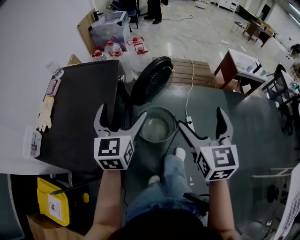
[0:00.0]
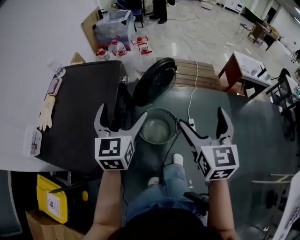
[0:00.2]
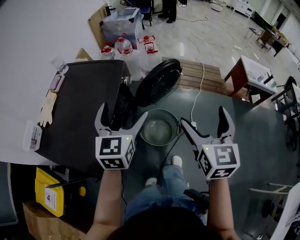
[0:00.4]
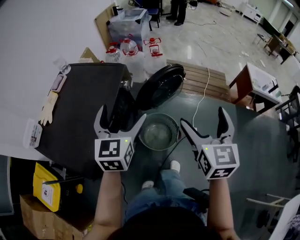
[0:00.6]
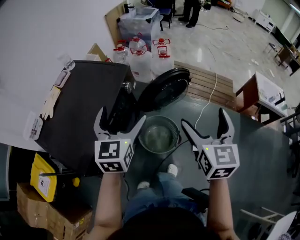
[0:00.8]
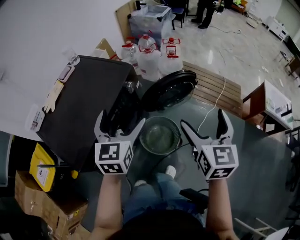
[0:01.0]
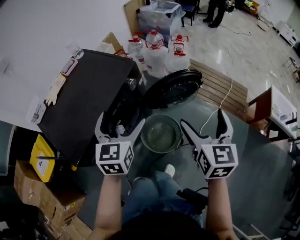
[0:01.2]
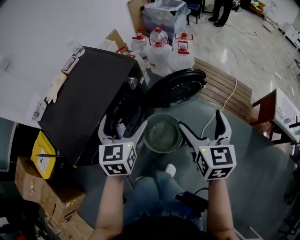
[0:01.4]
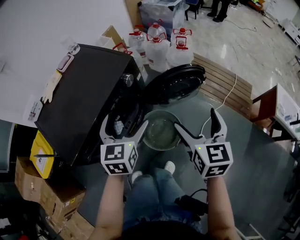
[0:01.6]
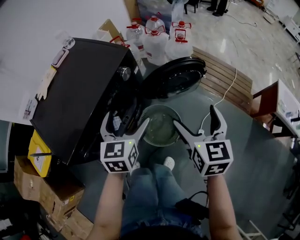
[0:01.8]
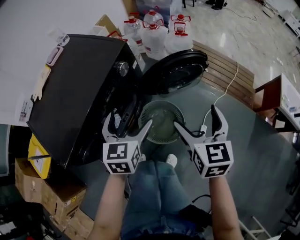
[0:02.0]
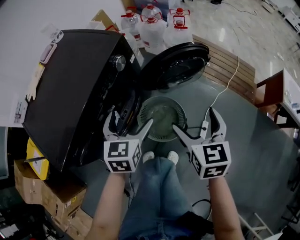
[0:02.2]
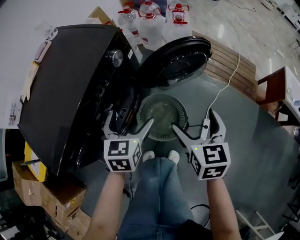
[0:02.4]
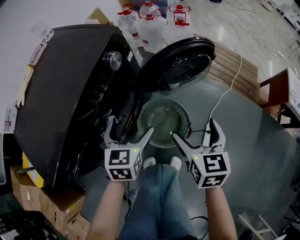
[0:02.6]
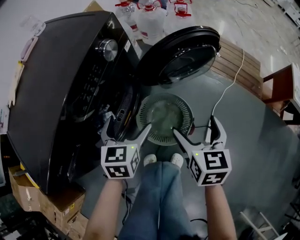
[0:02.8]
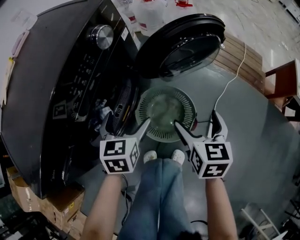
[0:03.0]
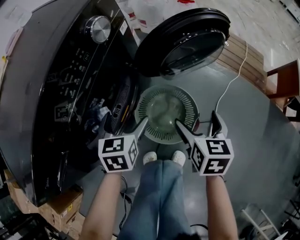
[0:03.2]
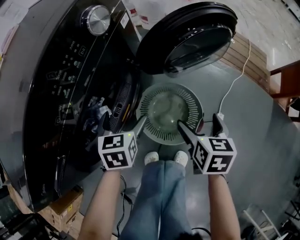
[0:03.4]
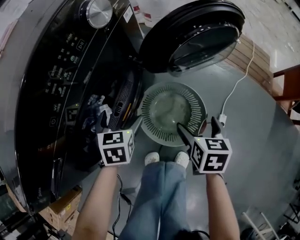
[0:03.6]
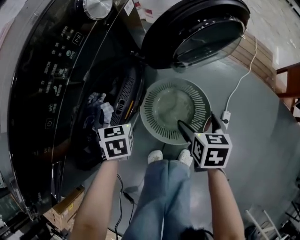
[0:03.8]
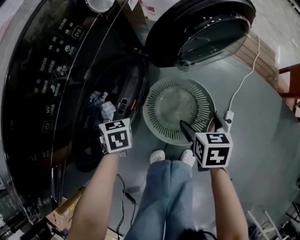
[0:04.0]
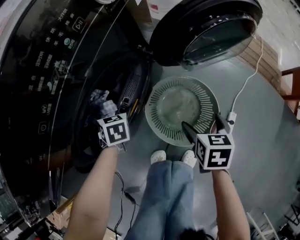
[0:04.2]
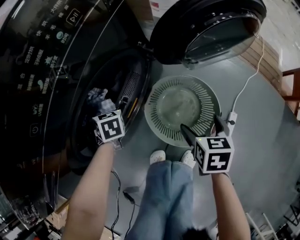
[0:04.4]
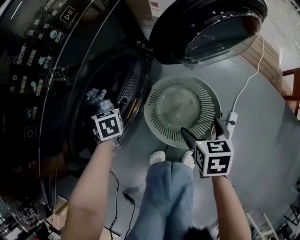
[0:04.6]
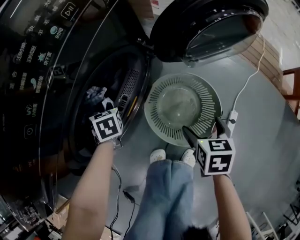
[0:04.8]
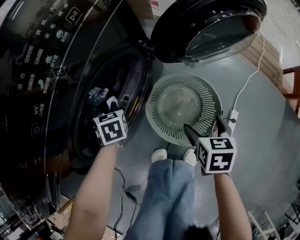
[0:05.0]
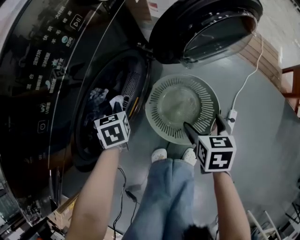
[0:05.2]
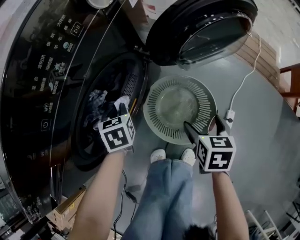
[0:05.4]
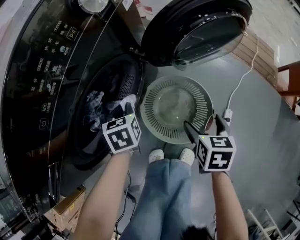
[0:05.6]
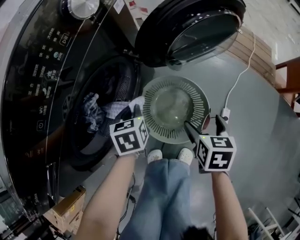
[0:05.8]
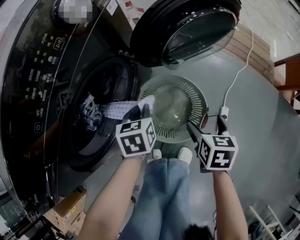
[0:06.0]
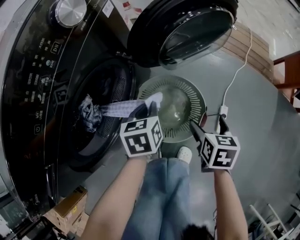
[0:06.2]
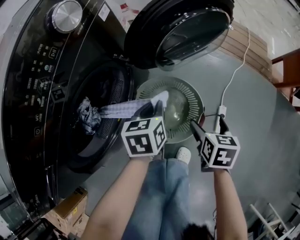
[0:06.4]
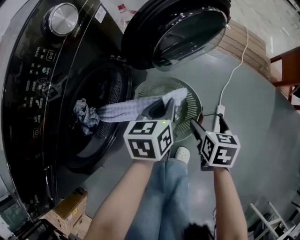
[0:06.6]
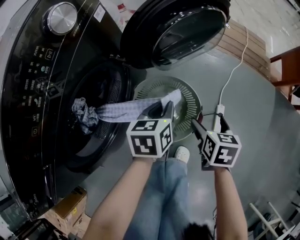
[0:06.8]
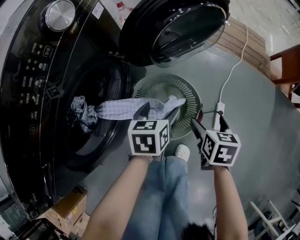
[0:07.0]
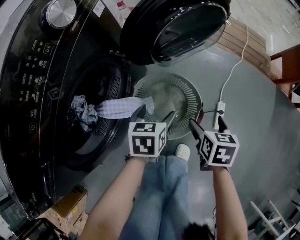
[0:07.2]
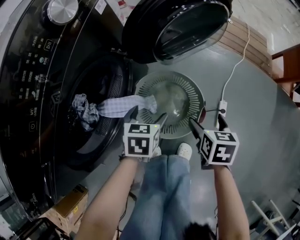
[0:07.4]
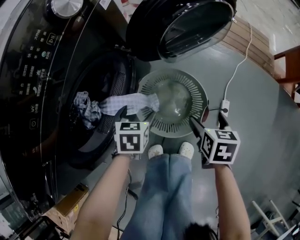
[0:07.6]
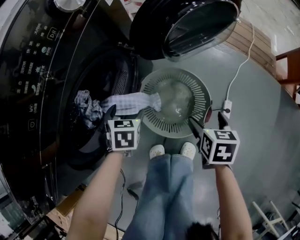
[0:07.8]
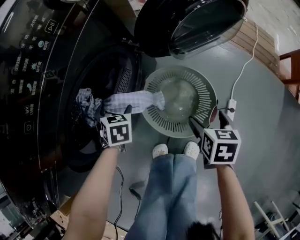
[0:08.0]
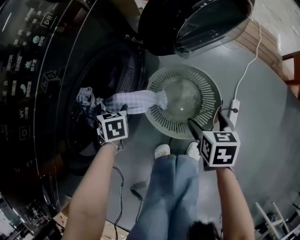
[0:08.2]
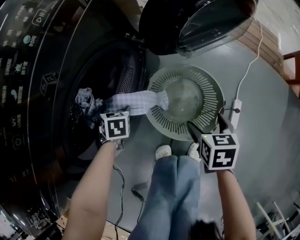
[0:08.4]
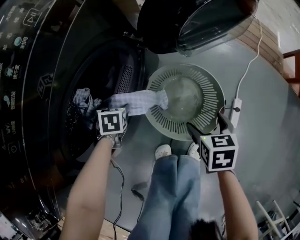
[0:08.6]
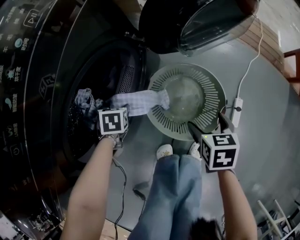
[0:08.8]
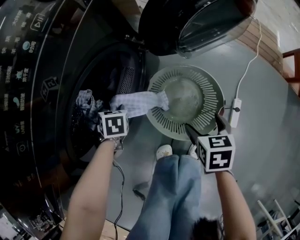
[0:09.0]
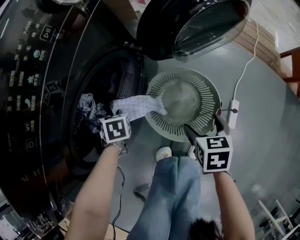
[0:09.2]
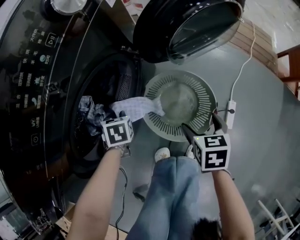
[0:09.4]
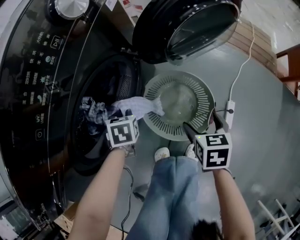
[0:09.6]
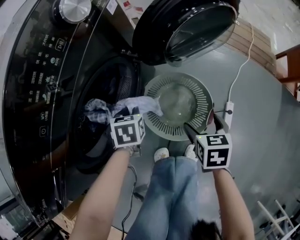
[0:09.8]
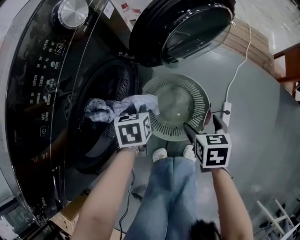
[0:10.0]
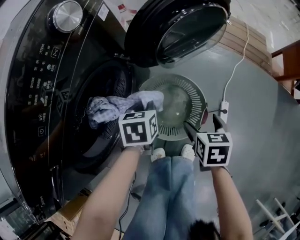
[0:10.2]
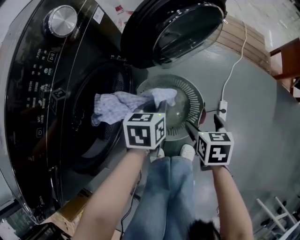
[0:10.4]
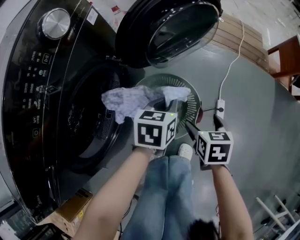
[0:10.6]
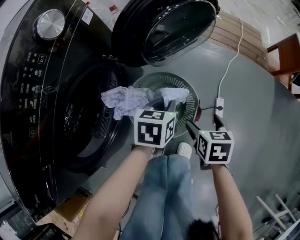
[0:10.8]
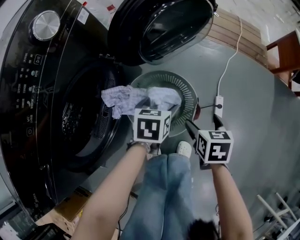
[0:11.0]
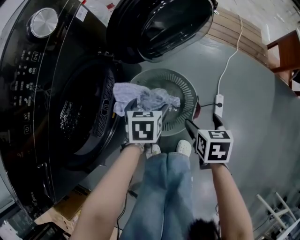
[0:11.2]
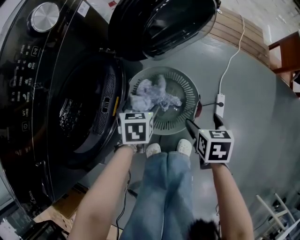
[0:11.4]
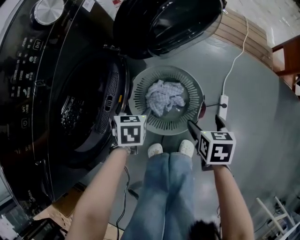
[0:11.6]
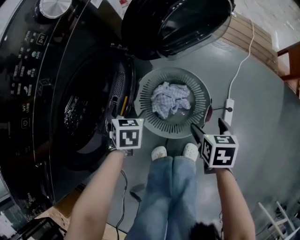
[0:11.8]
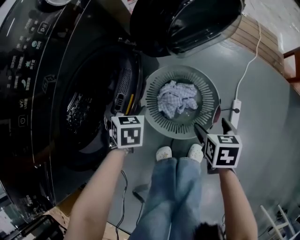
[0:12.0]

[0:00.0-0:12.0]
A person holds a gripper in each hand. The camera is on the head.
0:00.0 to 0:01.6: The left gripper changes place by some 15 cm, and turns by about 30 degrees, while the right gripper changes place by approximately 25 cm, and rotates roughly 30 degrees.
0:01.6 to 0:03.0: Both grippers travel together downward, approximately 30 cm.
0:03.0 to 0:04.4: Both grippers travel together downward, about 20 cm. The left gripper rotates approximately 30 degrees.
0:04.4 to 0:06.0: The right gripper moves roughly 10 cm; the left gripper ends up some 20 cm from where it was, swivels some 30 degrees, and closes up.
0:06.0 to 0:07.6: The left gripper goes to the right and returns, roughly 10 cm each way, and opens its fingers.
0:07.6 to 0:09.0: The left gripper changes place by some 20 cm, rotates about 20 degrees, and closes, while the right gripper moves about 10 cm.
0:09.0 to 0:10.4: The right gripper changes place by about 10 cm, while the left gripper shifts by roughly 30 cm, and changes its angle by approximately 40 degrees.
0:10.4 to 0:12.0: The left gripper changes place by approximately 20 cm, swivels about 30 degrees, and opens its fingers; the right gripper travels downward by some 5 cm.

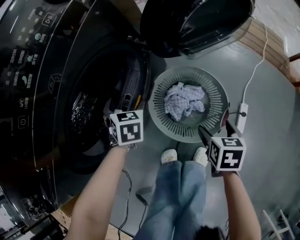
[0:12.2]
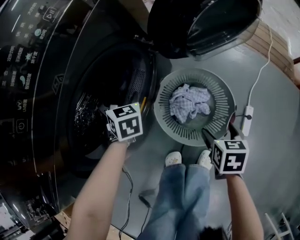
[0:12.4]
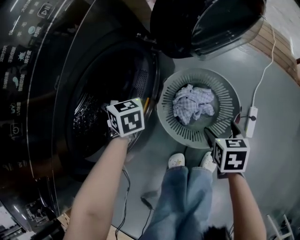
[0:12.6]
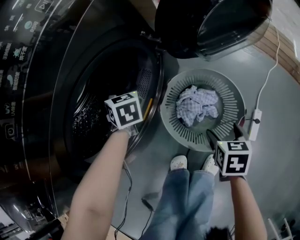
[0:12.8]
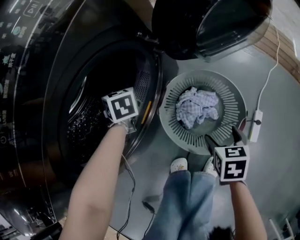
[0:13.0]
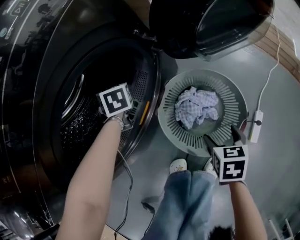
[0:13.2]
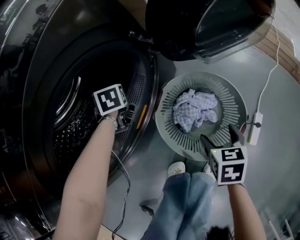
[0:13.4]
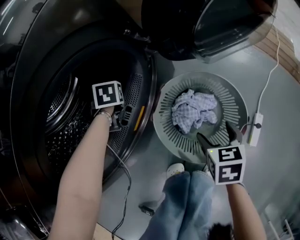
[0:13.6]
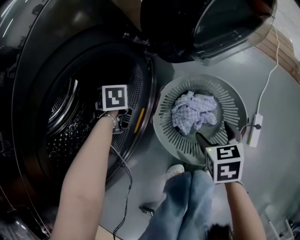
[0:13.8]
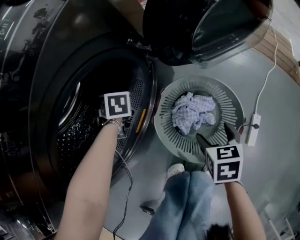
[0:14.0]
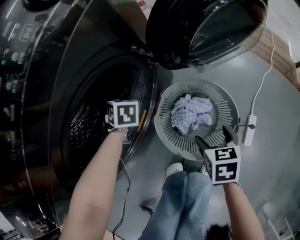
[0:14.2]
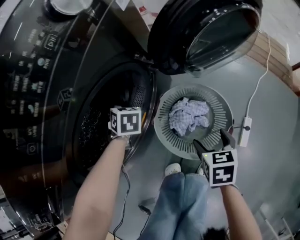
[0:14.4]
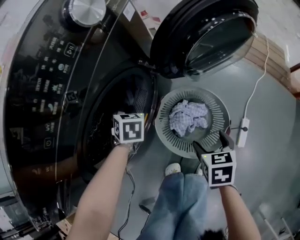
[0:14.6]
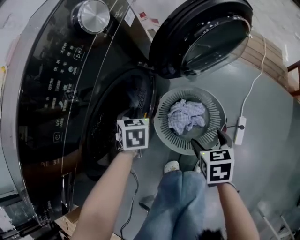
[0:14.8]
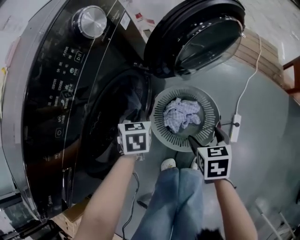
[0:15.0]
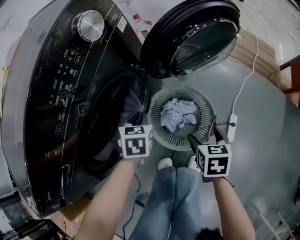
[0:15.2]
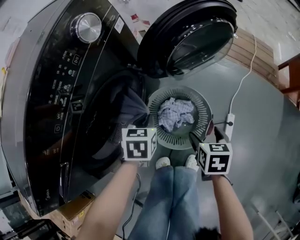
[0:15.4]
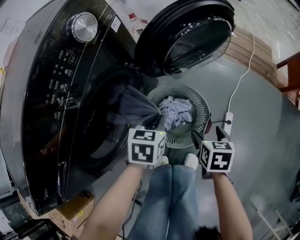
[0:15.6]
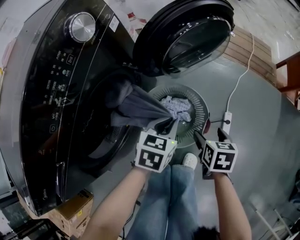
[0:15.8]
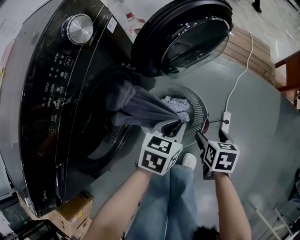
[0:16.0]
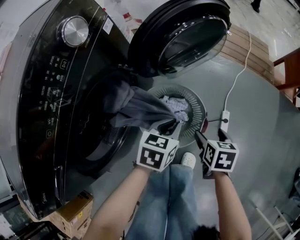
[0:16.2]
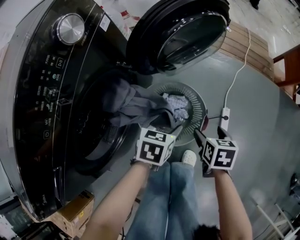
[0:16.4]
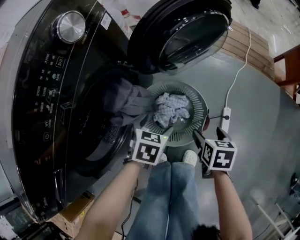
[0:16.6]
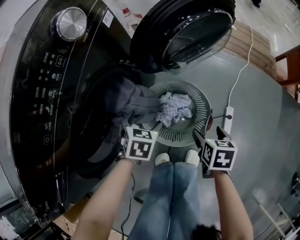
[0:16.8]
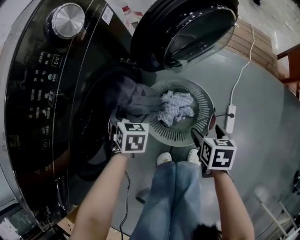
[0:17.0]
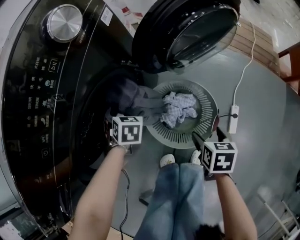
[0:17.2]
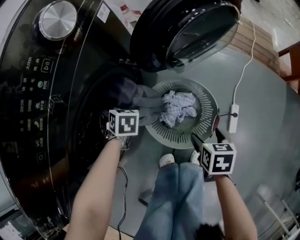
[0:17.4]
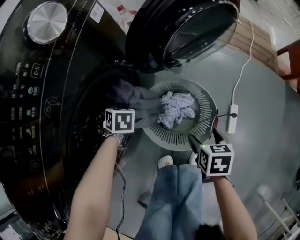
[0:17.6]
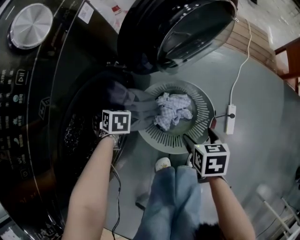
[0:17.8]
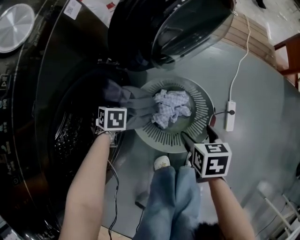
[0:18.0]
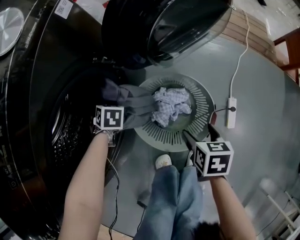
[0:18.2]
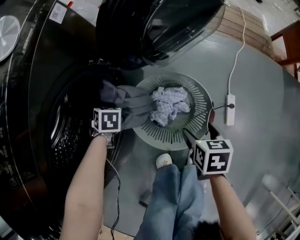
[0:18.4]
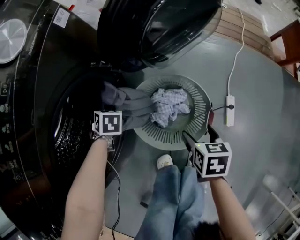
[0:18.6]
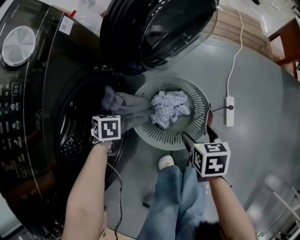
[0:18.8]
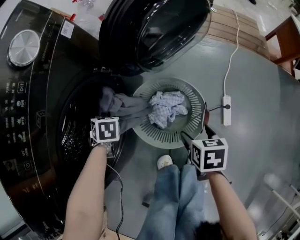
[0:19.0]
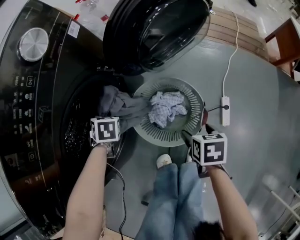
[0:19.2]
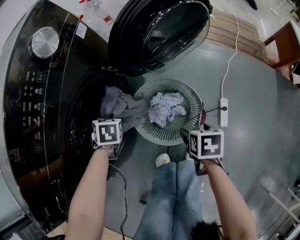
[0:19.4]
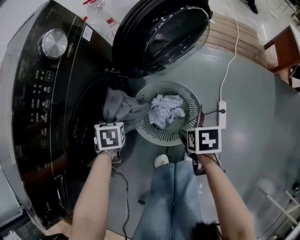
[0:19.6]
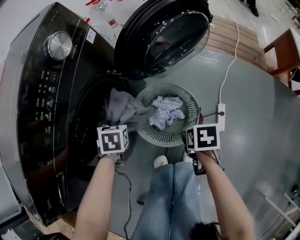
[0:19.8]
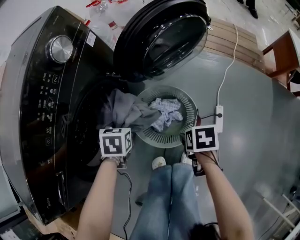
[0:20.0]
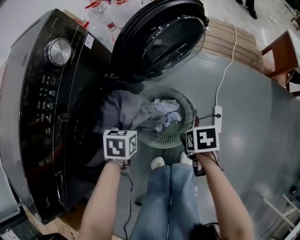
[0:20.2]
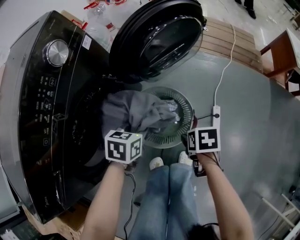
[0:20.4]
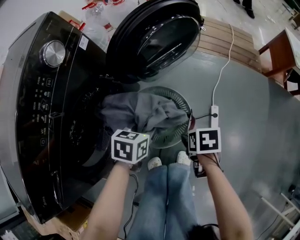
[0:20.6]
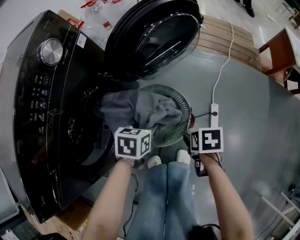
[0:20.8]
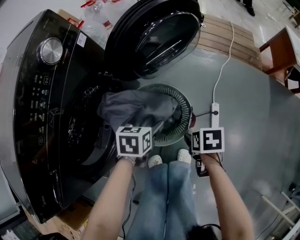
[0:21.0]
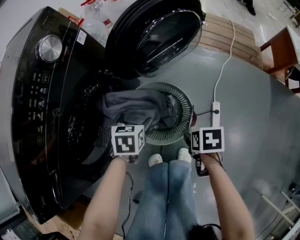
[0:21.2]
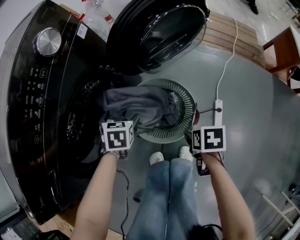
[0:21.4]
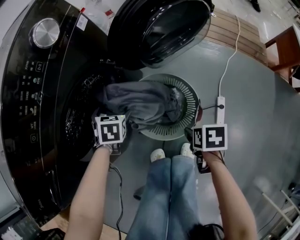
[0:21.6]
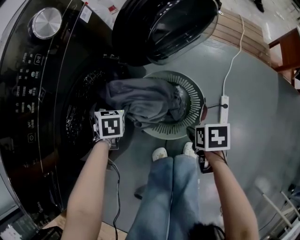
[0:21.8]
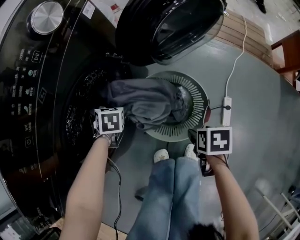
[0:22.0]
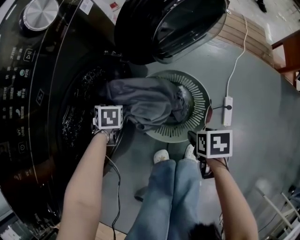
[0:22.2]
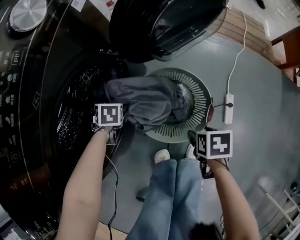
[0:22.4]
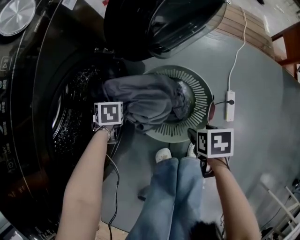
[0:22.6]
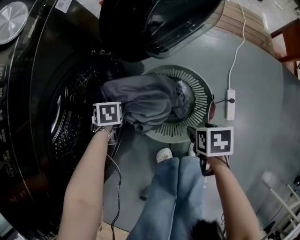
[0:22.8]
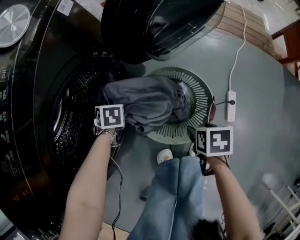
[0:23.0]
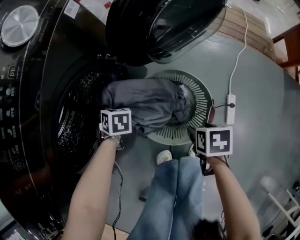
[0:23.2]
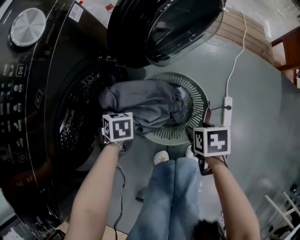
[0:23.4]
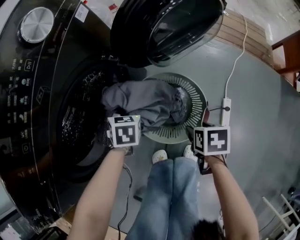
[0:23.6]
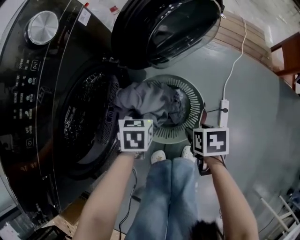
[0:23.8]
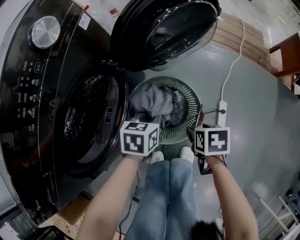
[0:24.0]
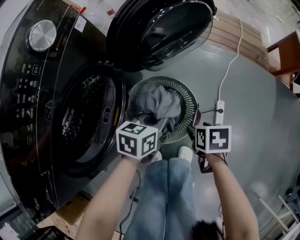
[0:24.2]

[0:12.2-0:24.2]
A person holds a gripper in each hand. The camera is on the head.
0:12.2 to 0:13.8: The left gripper moves forward and downward, about 15 cm, and closes up, while the right gripper heads forward and downward, covering approximately 10 cm.
0:13.8 to 0:15.2: The right gripper heads upward, covering about 15 cm; the left gripper ends up approximately 25 cm from where it was, and rotates some 30 degrees.
0:15.2 to 0:16.6: The left gripper swivels approximately 20 degrees, and opens up. The right gripper shifts by some 5 cm.
0:16.6 to 0:18.2: The right gripper is displaced downward by approximately 5 cm; the left gripper moves approximately 25 cm, and turns by about 30 degrees.
0:18.2 to 0:19.8: The left gripper is displaced upward and backward by some 15 cm, and closes. The right gripper moves upward, about 5 cm.
0:19.8 to 0:21.2: The left gripper opens.
0:21.2 to 0:22.6: The right gripper is displaced downward by roughly 5 cm. Meanwhile the left gripper goes approximately 25 cm forward, downward and to the left, and swivels about 20 degrees.
0:22.6 to 0:24.2: The right gripper goes about 5 cm upward. The left gripper ends up some 30 cm from where it was, rotates approximately 50 degrees, and closes its fingers.
